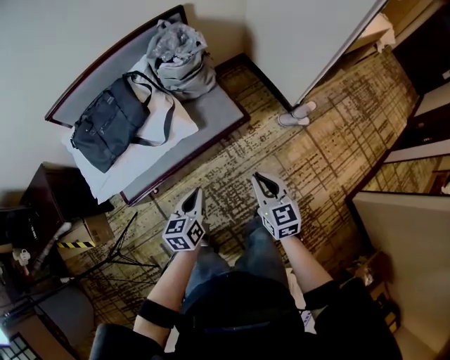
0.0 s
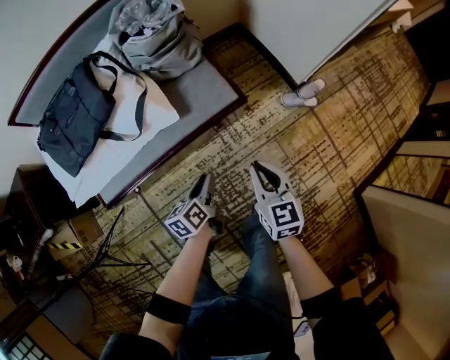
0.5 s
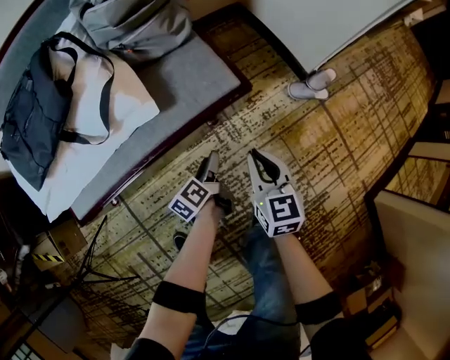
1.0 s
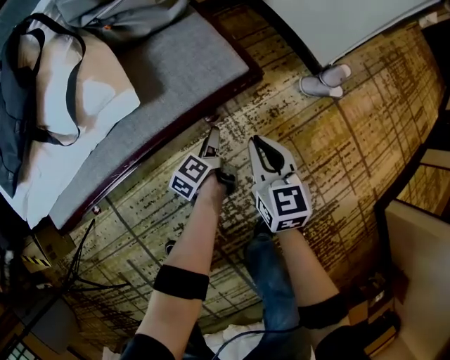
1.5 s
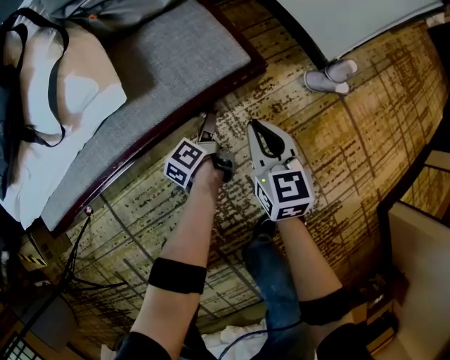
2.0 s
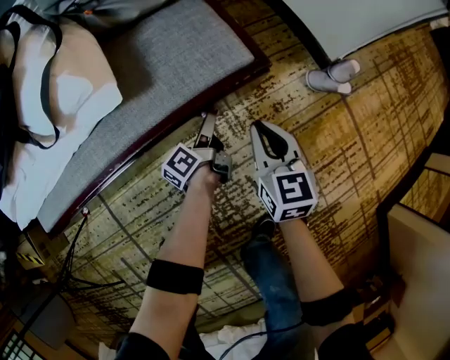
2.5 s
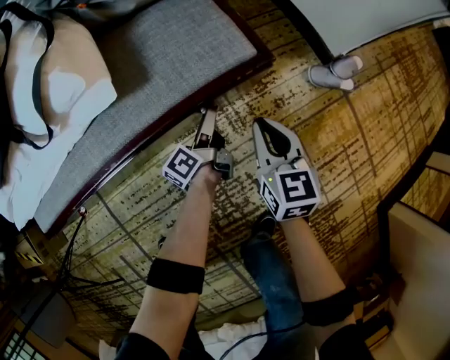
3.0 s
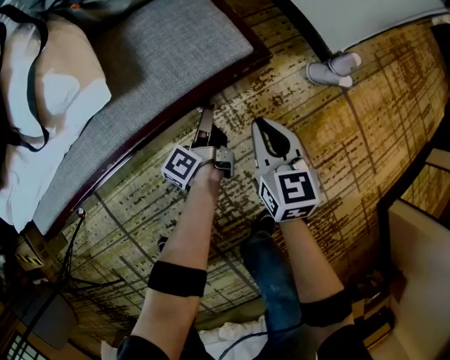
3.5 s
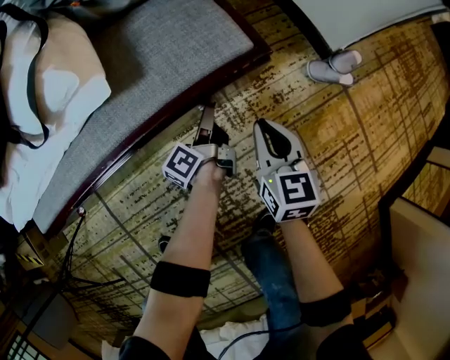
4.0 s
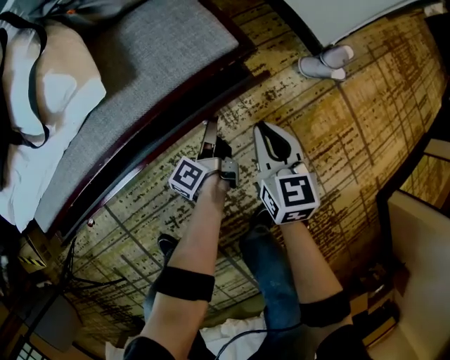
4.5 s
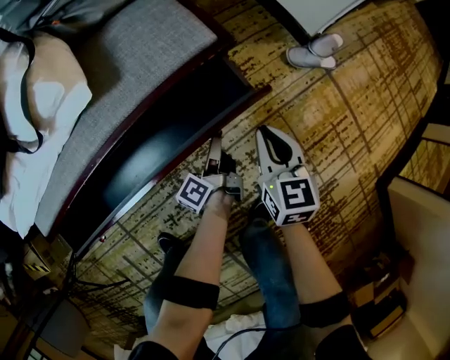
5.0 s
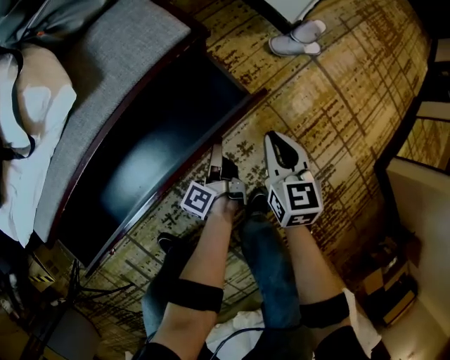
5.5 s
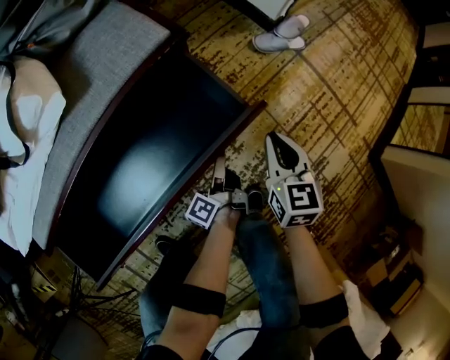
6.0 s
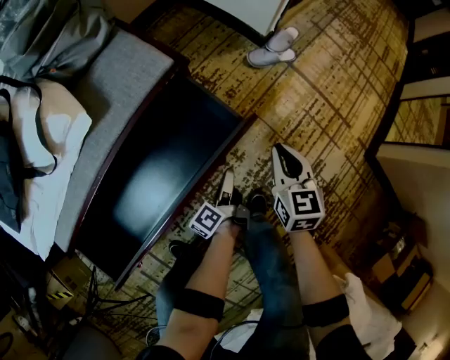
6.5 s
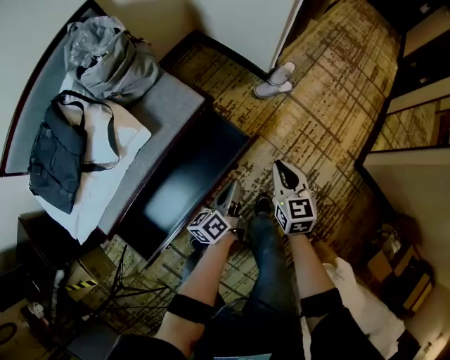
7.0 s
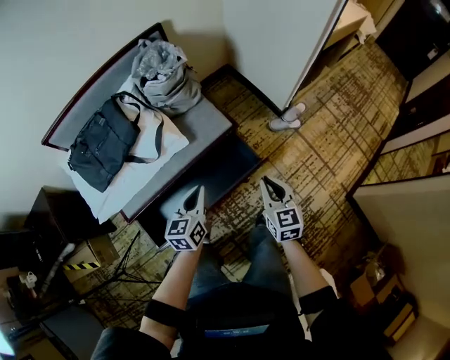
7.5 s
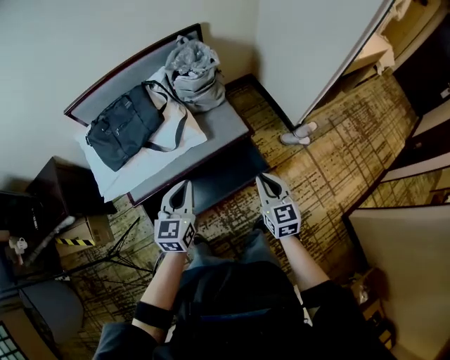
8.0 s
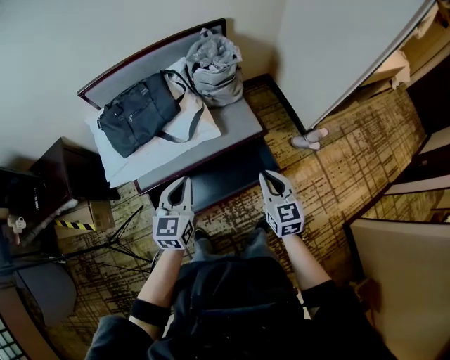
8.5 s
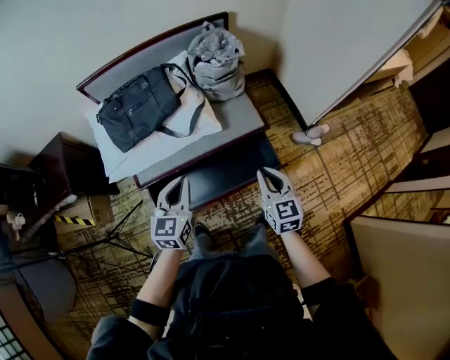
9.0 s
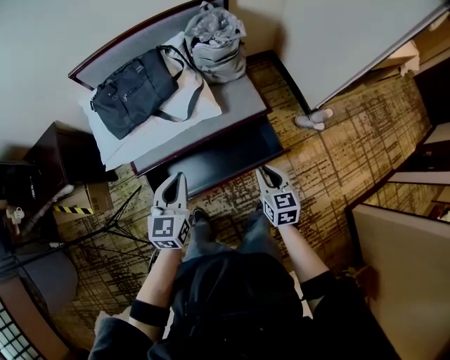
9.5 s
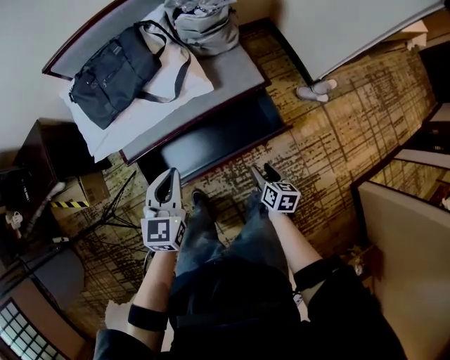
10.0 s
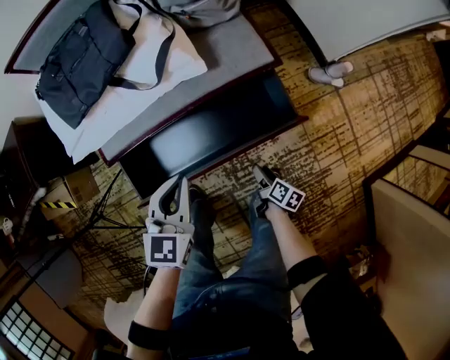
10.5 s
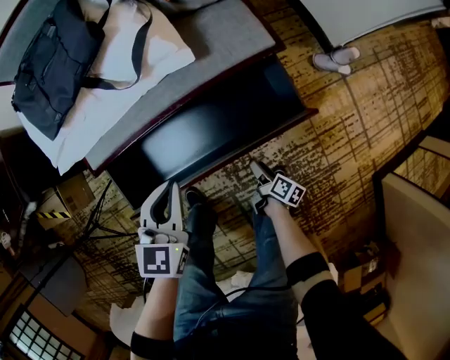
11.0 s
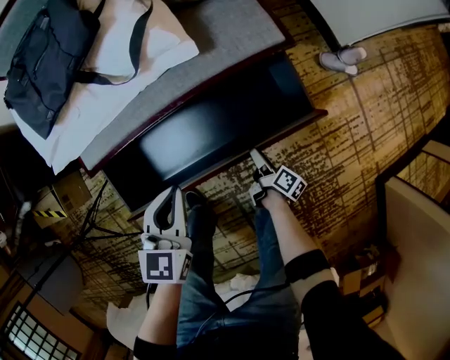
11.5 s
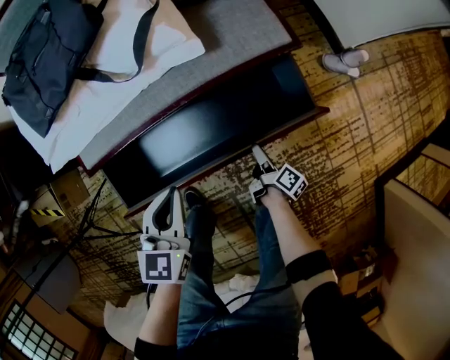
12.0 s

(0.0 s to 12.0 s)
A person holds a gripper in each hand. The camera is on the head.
0.0 s - 2.0 s: The grippers both shift downward and forward by some 60 cm. The left gripper rotates around the line of its fingers by some 50 degrees, counterclockwise from behind, and opens.
2.0 s - 4.0 s: The right gripper shifts by about 5 cm. Meanwhile the left gripper closes up.
4.0 s - 6.0 s: The left gripper goes some 25 cm backward and to the right, while the right gripper travels to the right and backward by some 20 cm.
6.0 s - 8.0 s: The grippers both shift upward by some 60 cm. The right gripper changes its angle by roughly 30 degrees, while the left gripper twists some 80 degrees clockwise, seen from behind, and opens, then closes again.
8.0 s - 10.0 s: The left gripper goes approximately 10 cm downward and to the left; the right gripper goes some 25 cm downward, turns by about 40 degrees, and opens up.
10.0 s - 12.0 s: Both grippers move downward, approximately 30 cm. The right gripper rolls clockwise, seen from behind, by some 40 degrees.

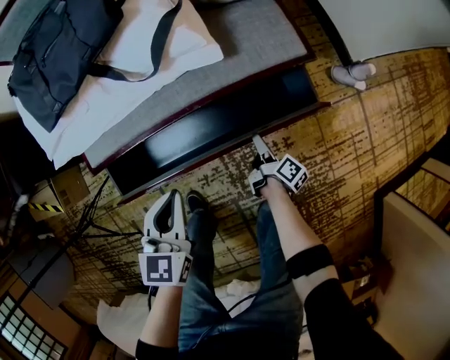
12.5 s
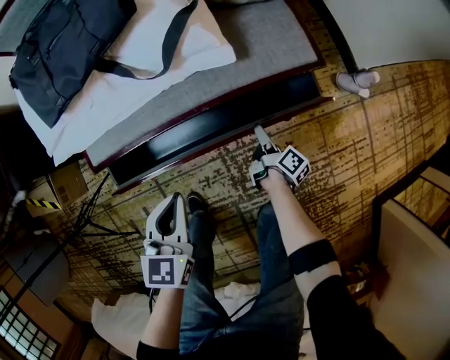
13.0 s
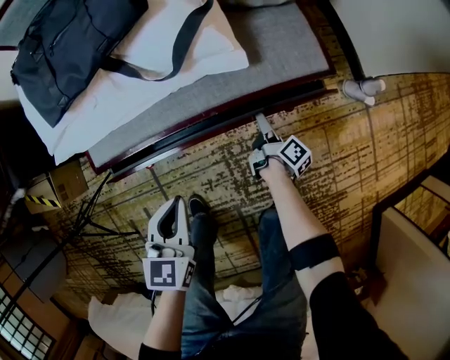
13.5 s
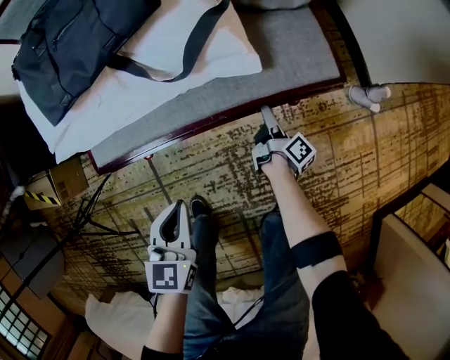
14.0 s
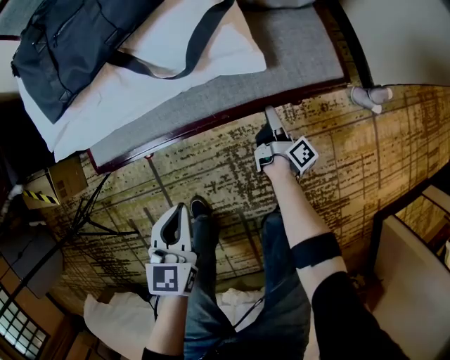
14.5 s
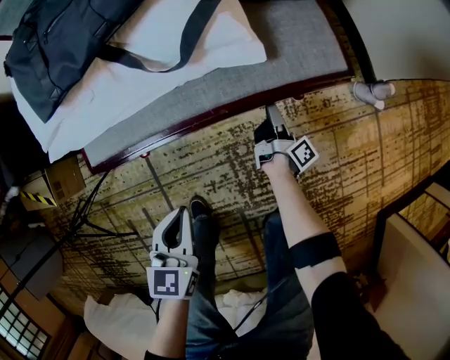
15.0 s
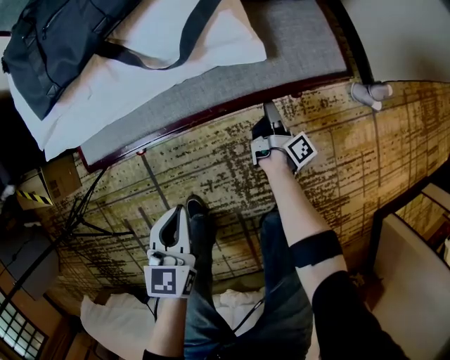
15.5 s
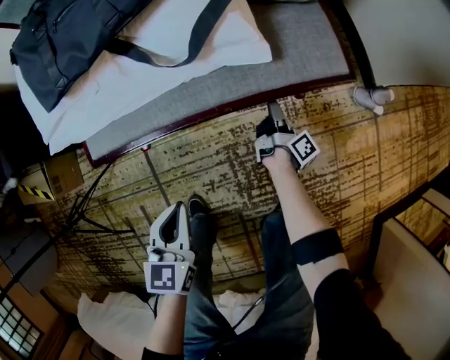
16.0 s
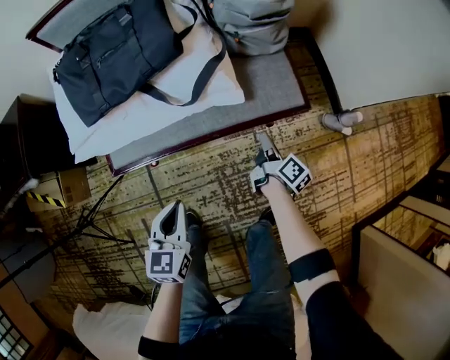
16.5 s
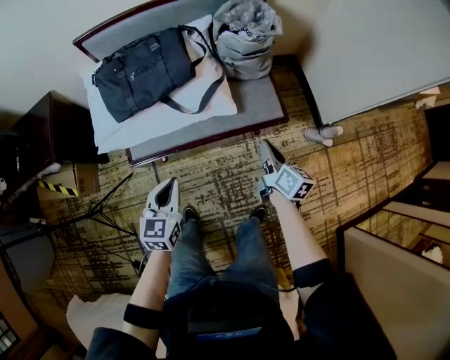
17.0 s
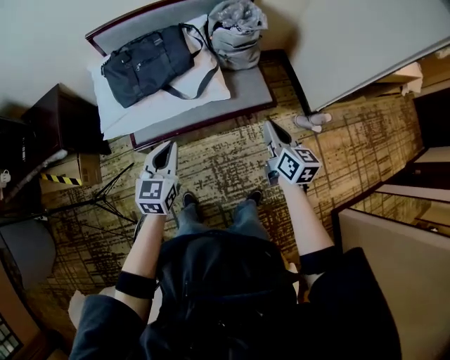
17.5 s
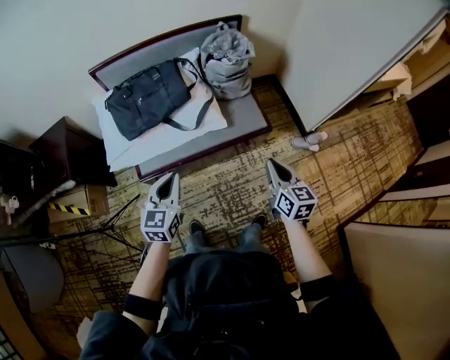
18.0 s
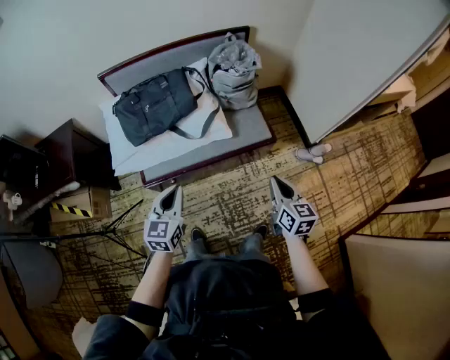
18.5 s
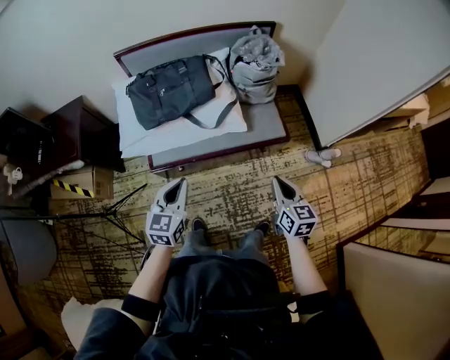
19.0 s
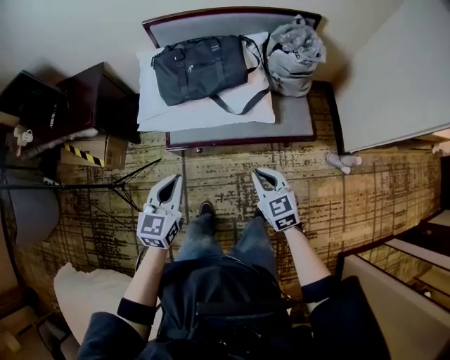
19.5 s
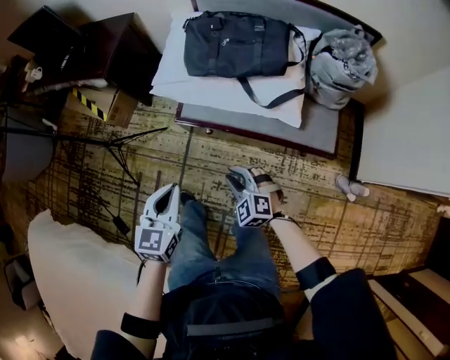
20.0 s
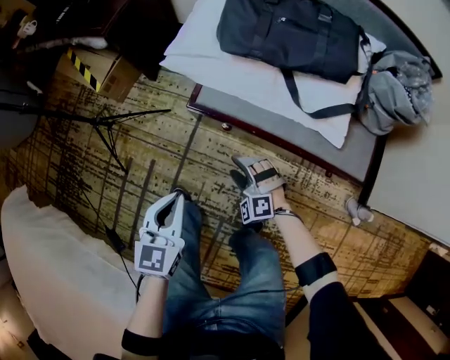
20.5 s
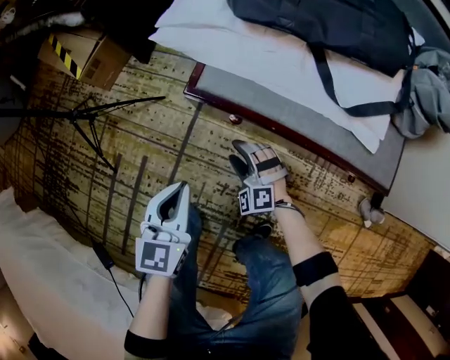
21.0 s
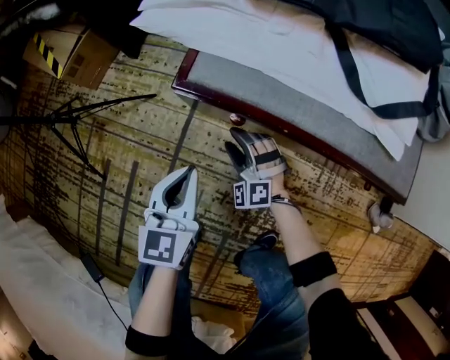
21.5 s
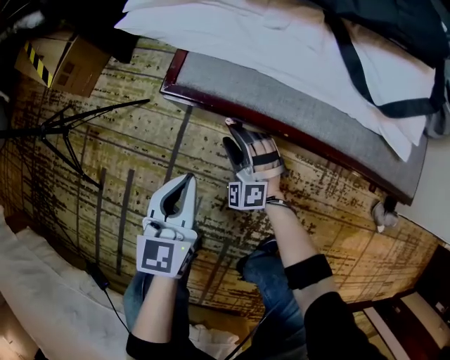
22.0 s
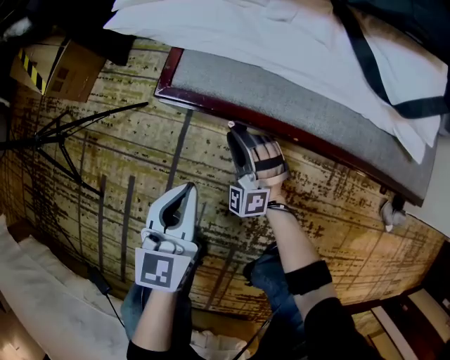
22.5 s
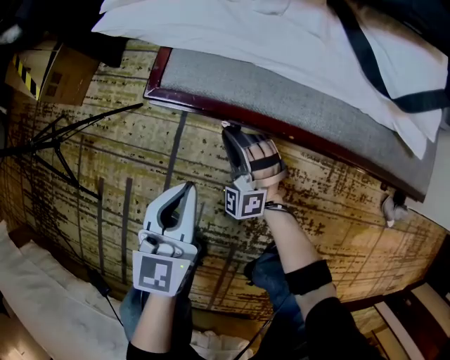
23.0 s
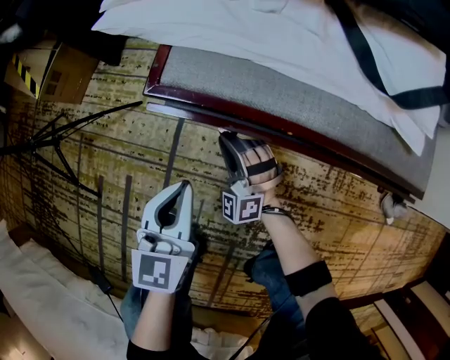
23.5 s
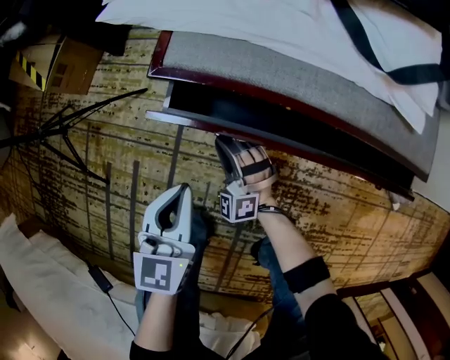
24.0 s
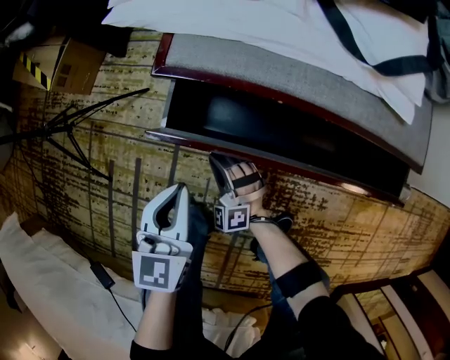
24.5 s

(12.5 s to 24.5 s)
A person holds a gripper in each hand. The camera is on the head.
12.5 s - 14.5 s: The right gripper is displaced forward by approximately 15 cm; the left gripper travels to the left by approximately 5 cm.
14.5 s - 16.5 s: The right gripper moves upward, approximately 20 cm, swivels approximately 20 degrees, and closes up. Meanwhile the left gripper is displaced upward by roughly 10 cm.
16.5 s - 18.5 s: The left gripper shifts approximately 25 cm upward; the right gripper is displaced upward and backward by some 40 cm, and rotates around the line of its fingers by about 50 degrees, counterclockwise from behind.
18.5 s - 20.5 s: The right gripper goes about 40 cm downward, rotates around the line of its fingers by about 100 degrees, counterclockwise from behind, and opens up, while the left gripper travels downward by approximately 25 cm, and changes its angle by approximately 40 degrees.
20.5 s - 22.5 s: The right gripper travels downward and forward by some 30 cm, rotates approximately 30 degrees, and closes its fingers. Meanwhile the left gripper is displaced downward by roughly 30 cm.
22.5 s - 24.5 s: The right gripper is displaced backward by about 15 cm. Meanwhile the left gripper moves backward and upward, about 10 cm.

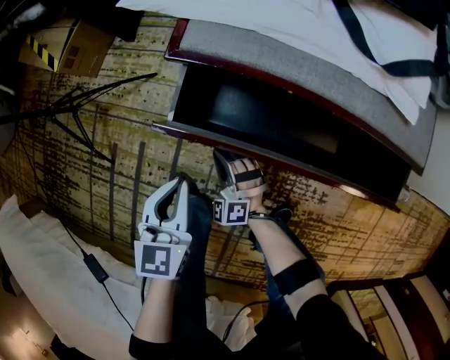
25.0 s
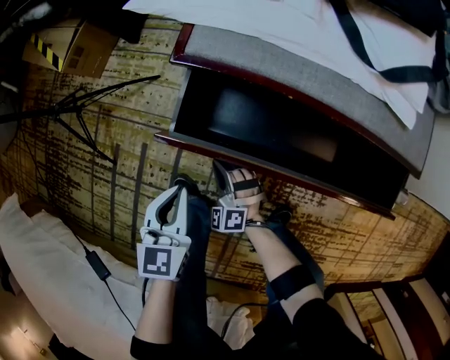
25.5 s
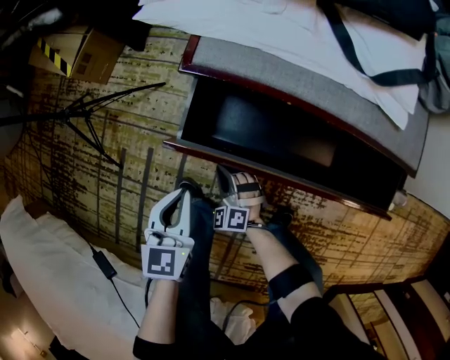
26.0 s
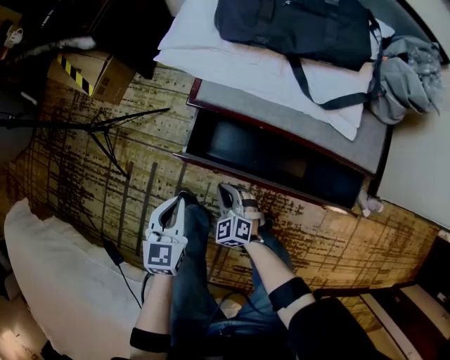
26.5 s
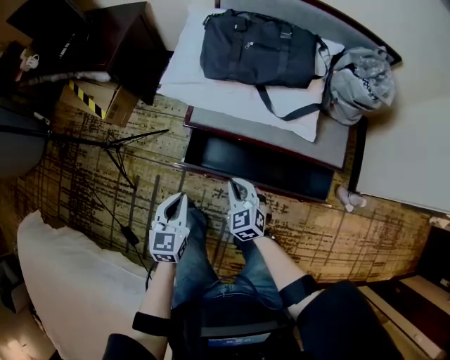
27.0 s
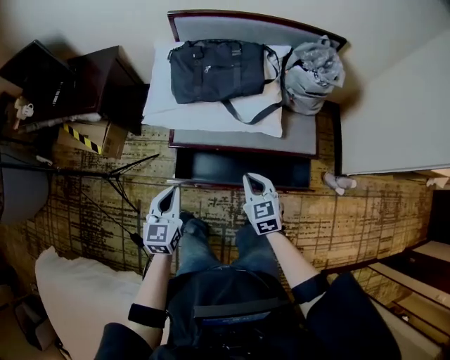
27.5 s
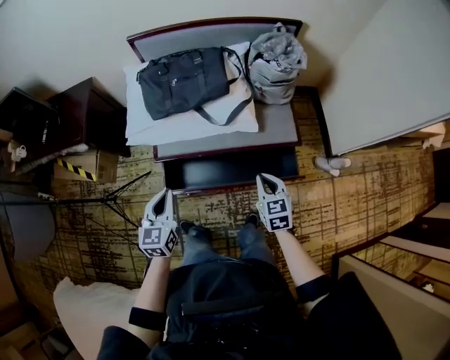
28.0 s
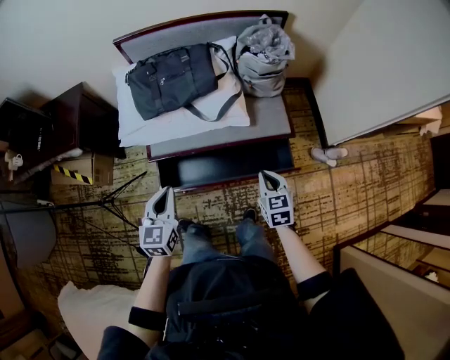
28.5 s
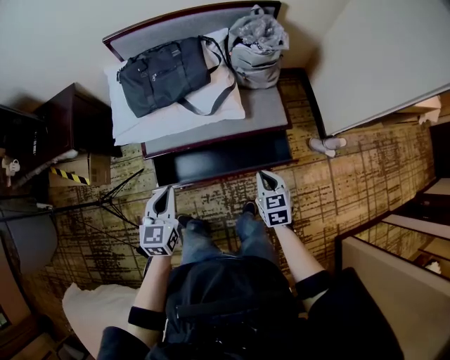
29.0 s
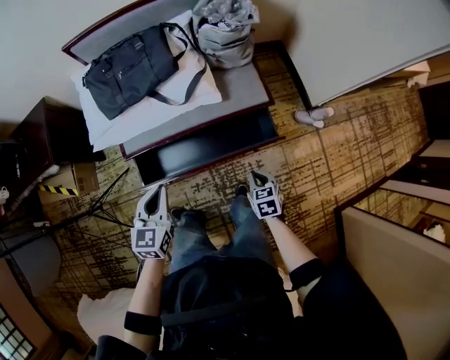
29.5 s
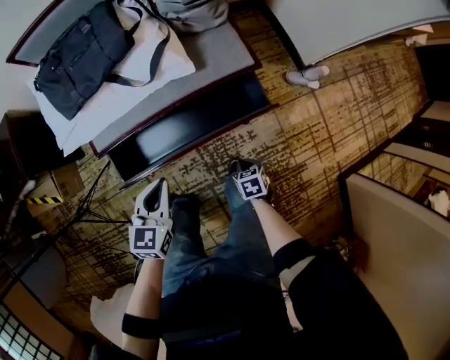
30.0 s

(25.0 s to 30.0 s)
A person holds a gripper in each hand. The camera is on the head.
25.0 s - 27.5 s: The left gripper shifts about 40 cm upward; the right gripper shifts about 60 cm upward and to the right, and rotates around the line of its fingers by some 60 degrees, clockwise from behind.
27.5 s - 30.0 s: The left gripper moves to the right and downward, roughly 25 cm, and turns by about 30 degrees. The right gripper heads downward, to the right and backward, covering roughly 40 cm, and points its fingers about 30 degrees further downward.
